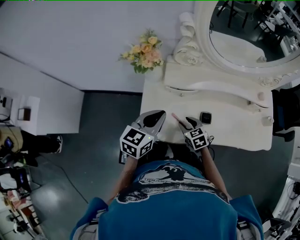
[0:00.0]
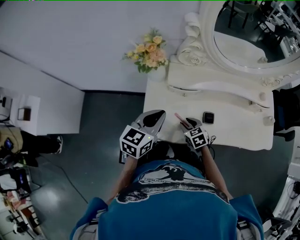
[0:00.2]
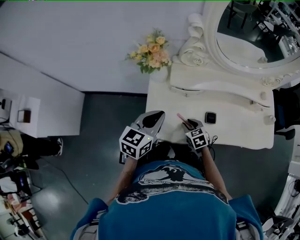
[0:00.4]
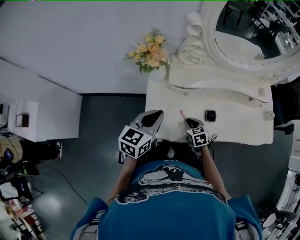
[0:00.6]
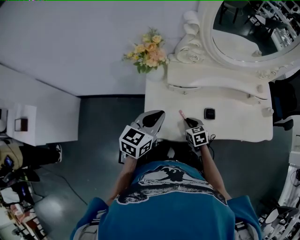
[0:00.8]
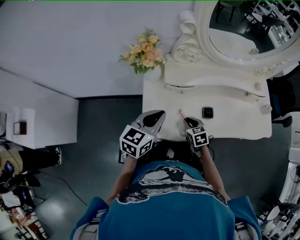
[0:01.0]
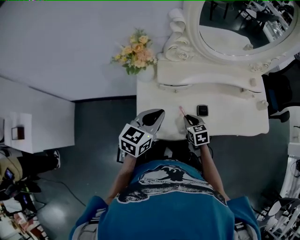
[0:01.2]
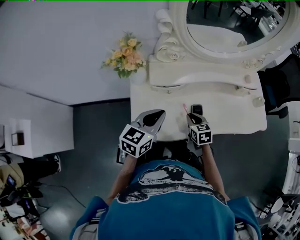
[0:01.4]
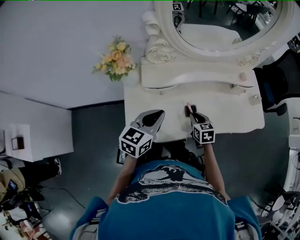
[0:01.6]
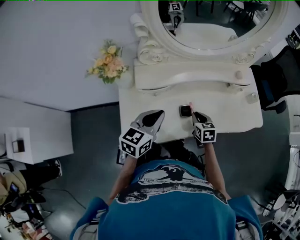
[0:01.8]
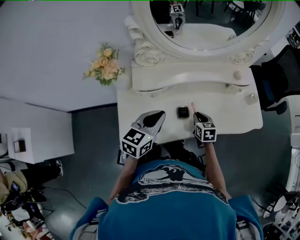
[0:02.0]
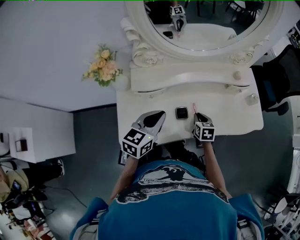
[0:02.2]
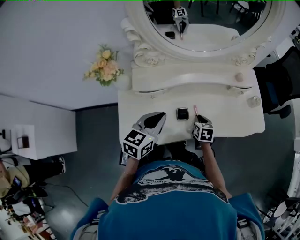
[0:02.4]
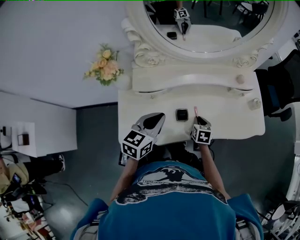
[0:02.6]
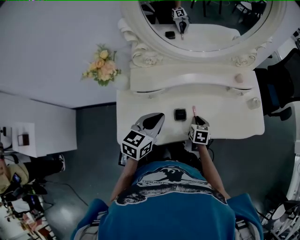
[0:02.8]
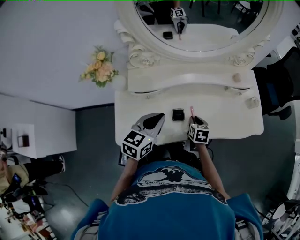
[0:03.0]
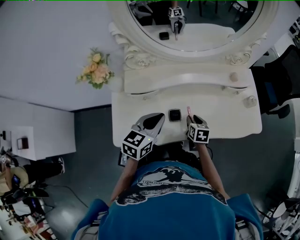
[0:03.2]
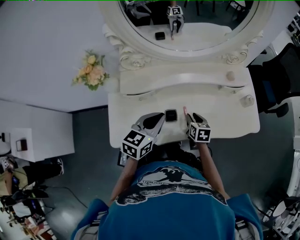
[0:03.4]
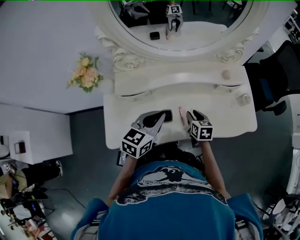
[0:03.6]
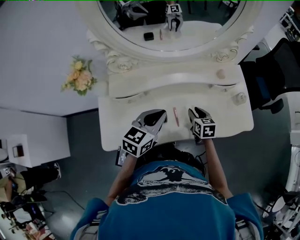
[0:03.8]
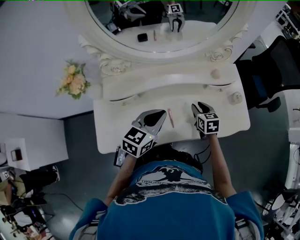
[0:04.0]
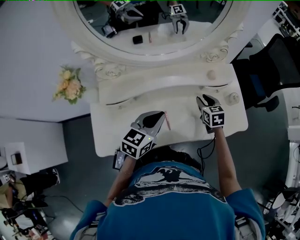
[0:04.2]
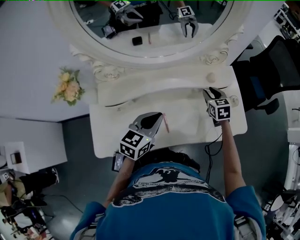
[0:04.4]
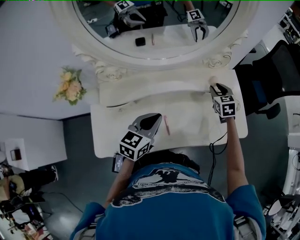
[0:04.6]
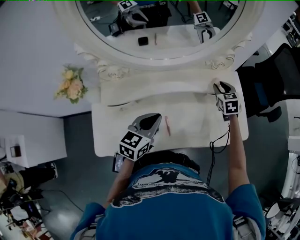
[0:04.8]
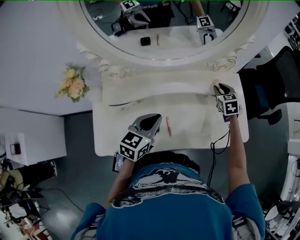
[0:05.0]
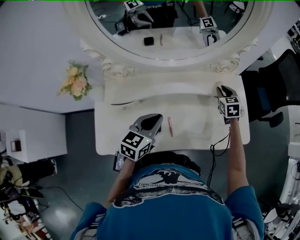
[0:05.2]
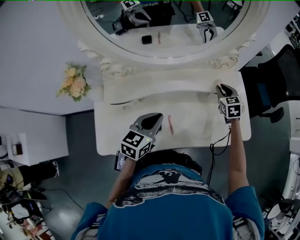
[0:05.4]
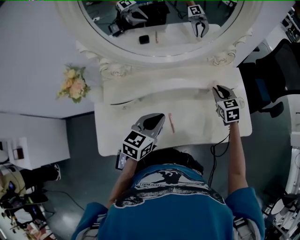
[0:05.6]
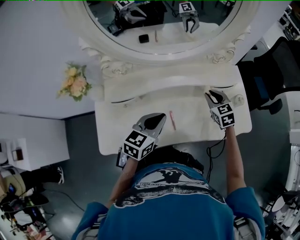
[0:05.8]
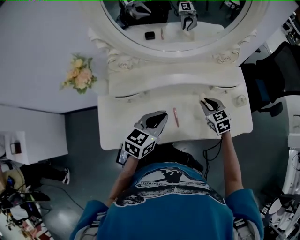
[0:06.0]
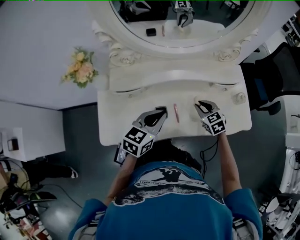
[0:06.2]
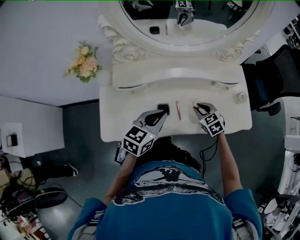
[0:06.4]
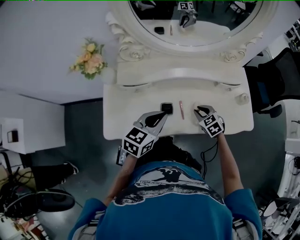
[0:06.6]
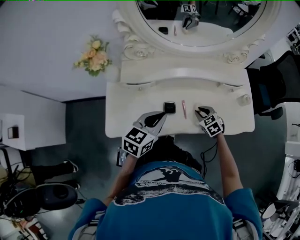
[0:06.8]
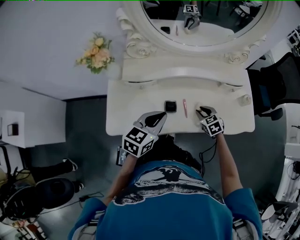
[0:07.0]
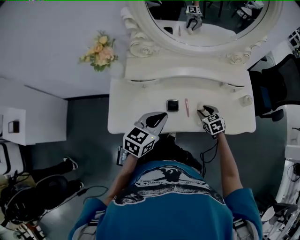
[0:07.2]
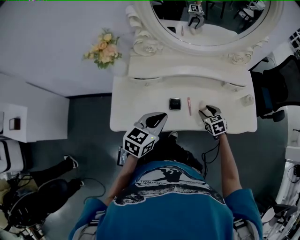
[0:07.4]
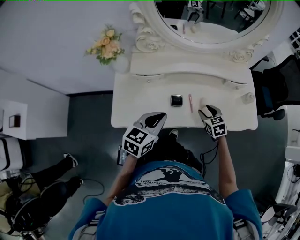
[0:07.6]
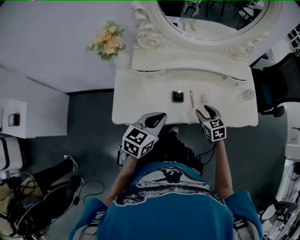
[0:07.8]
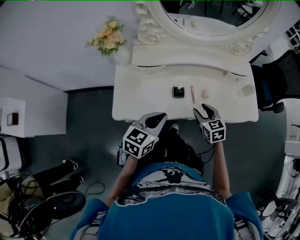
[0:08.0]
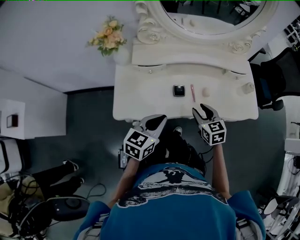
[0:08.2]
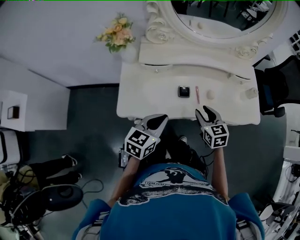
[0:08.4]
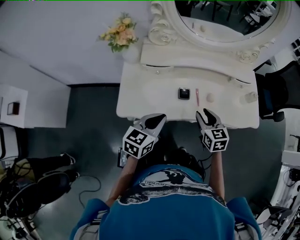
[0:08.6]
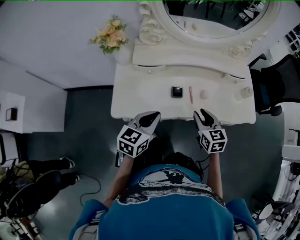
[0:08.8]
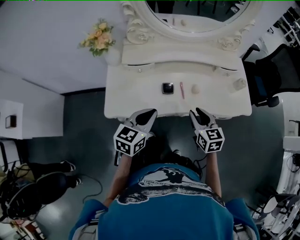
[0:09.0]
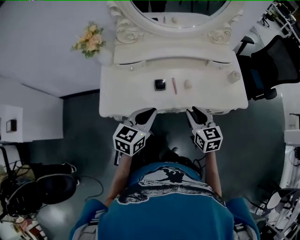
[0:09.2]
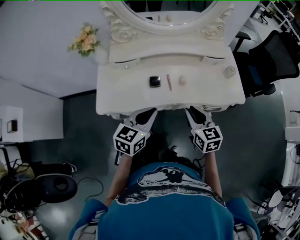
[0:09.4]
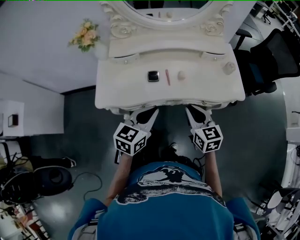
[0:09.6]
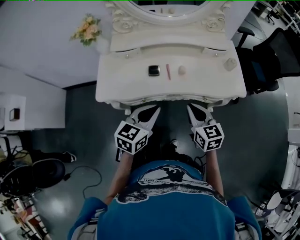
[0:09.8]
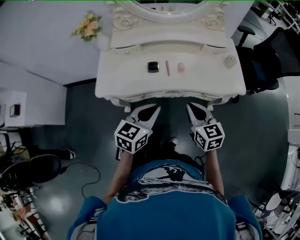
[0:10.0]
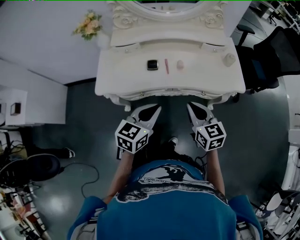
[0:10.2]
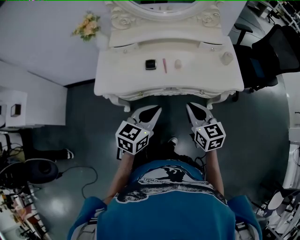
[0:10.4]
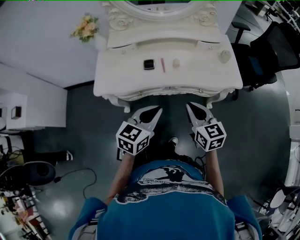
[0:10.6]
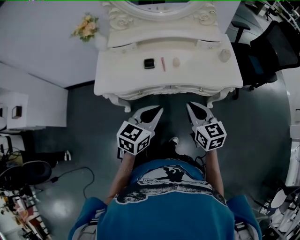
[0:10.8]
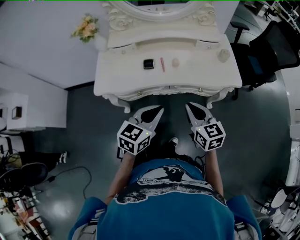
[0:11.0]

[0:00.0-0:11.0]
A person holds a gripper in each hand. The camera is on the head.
0.0 to 1.6 s: The right gripper shifts approximately 15 cm to the right, and changes its angle by approximately 30 degrees. The left gripper travels to the right by some 5 cm.
1.6 to 3.2 s: The two grippers go about 10 cm to the right.
3.2 to 4.8 s: The right gripper travels forward, to the right and upward by some 35 cm, and swivels some 30 degrees, while the left gripper is displaced to the right and forward by approximately 10 cm.
4.8 to 6.2 s: The right gripper heads backward and to the left, covering about 20 cm, and swivels roughly 20 degrees. Meanwhile the left gripper heads backward, covering roughly 5 cm.
6.2 to 7.8 s: Both grippers travel together backward and to the left, approximately 15 cm.
7.8 to 9.4 s: The left gripper shifts roughly 10 cm to the right and backward; the right gripper heads backward and upward, covering approximately 15 cm, and swivels about 20 degrees.
9.4 to 11.0 s: The left gripper travels backward and to the right by some 15 cm, while the right gripper heads backward, covering approximately 10 cm.

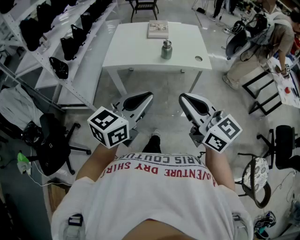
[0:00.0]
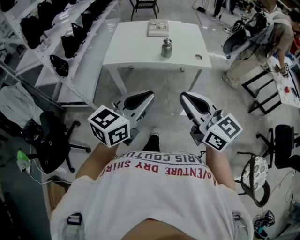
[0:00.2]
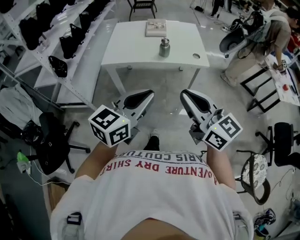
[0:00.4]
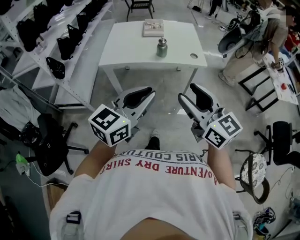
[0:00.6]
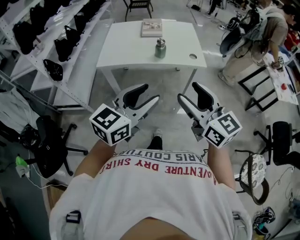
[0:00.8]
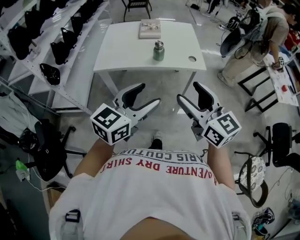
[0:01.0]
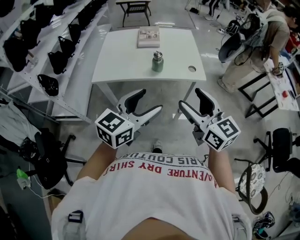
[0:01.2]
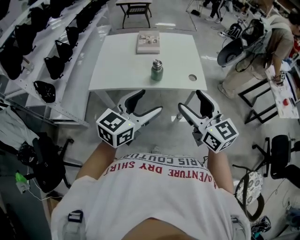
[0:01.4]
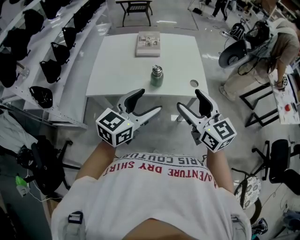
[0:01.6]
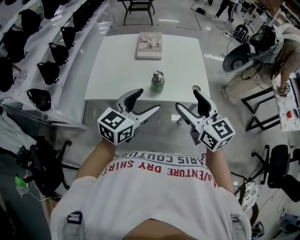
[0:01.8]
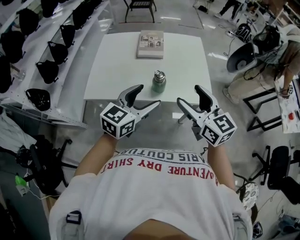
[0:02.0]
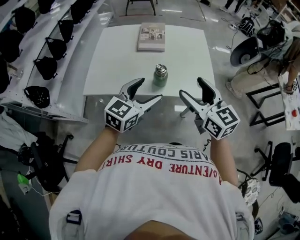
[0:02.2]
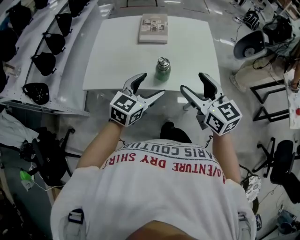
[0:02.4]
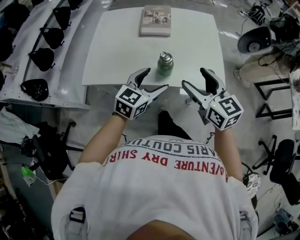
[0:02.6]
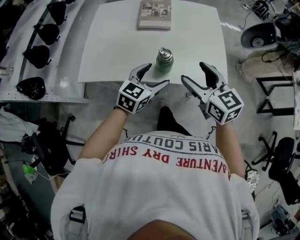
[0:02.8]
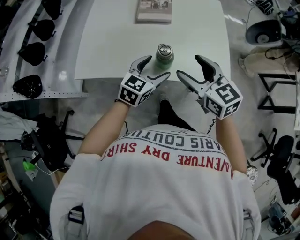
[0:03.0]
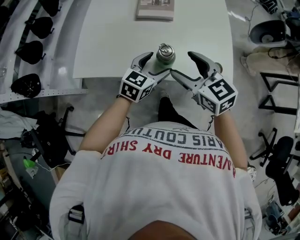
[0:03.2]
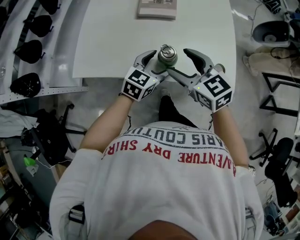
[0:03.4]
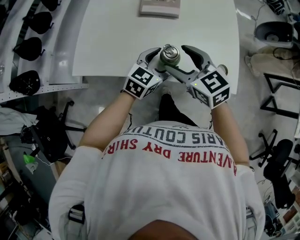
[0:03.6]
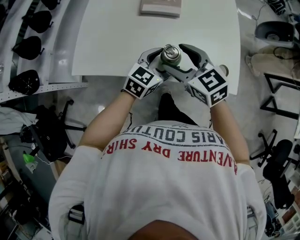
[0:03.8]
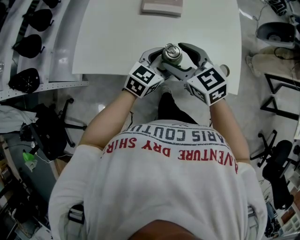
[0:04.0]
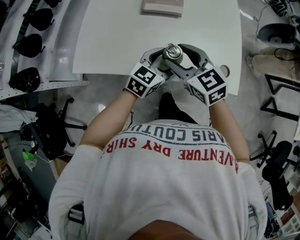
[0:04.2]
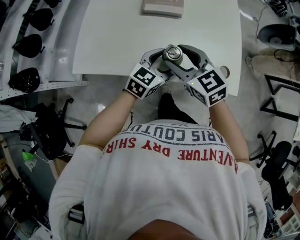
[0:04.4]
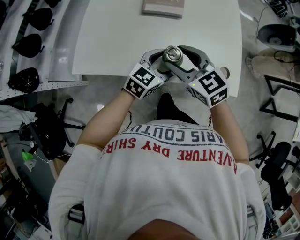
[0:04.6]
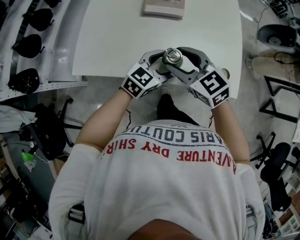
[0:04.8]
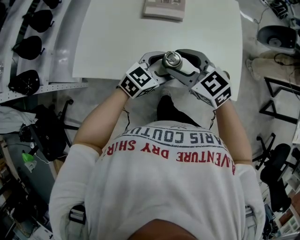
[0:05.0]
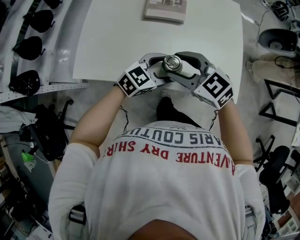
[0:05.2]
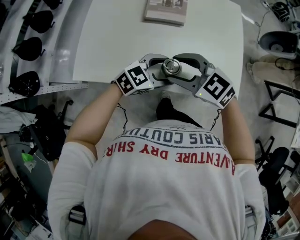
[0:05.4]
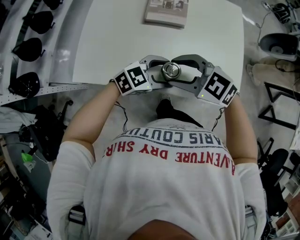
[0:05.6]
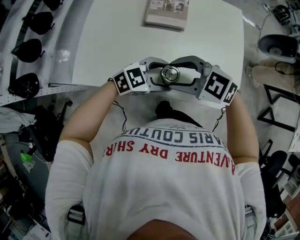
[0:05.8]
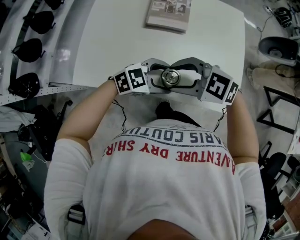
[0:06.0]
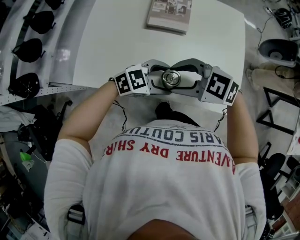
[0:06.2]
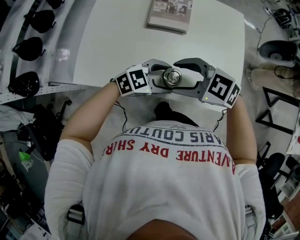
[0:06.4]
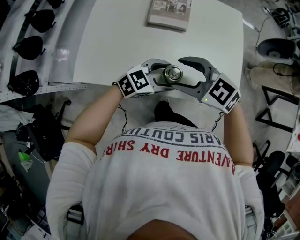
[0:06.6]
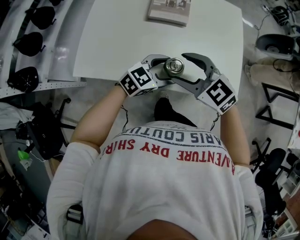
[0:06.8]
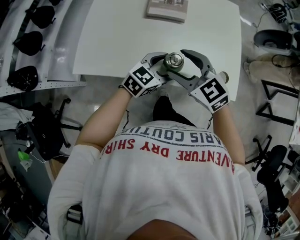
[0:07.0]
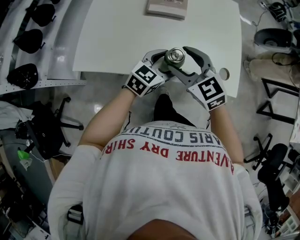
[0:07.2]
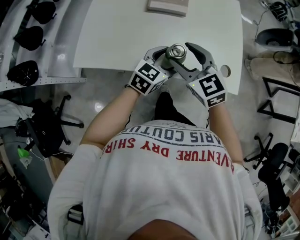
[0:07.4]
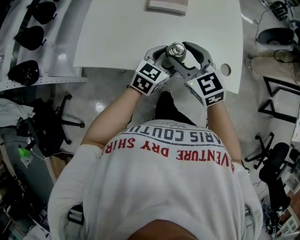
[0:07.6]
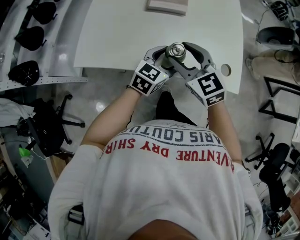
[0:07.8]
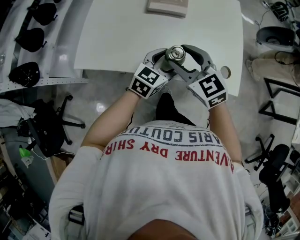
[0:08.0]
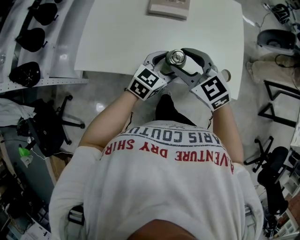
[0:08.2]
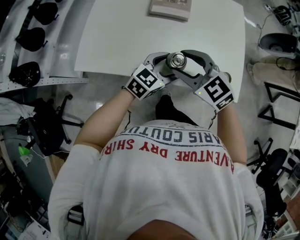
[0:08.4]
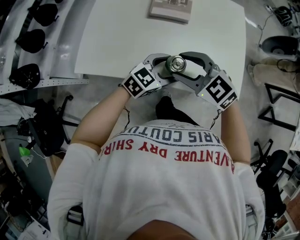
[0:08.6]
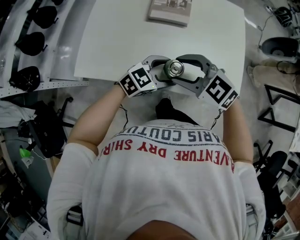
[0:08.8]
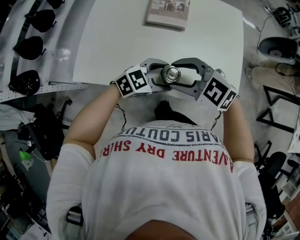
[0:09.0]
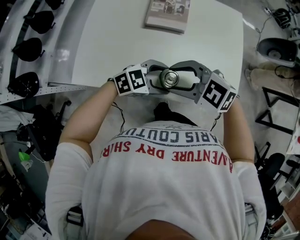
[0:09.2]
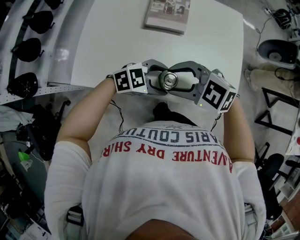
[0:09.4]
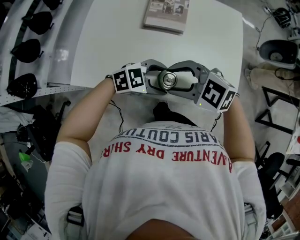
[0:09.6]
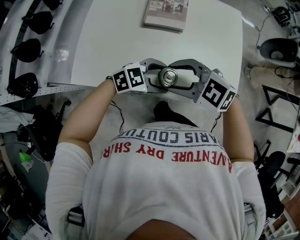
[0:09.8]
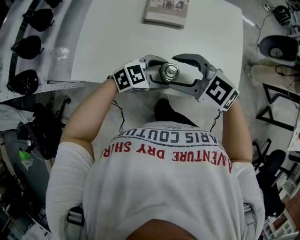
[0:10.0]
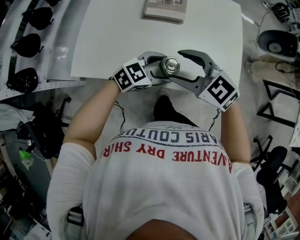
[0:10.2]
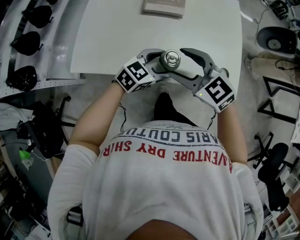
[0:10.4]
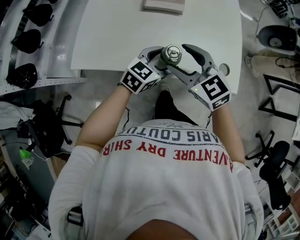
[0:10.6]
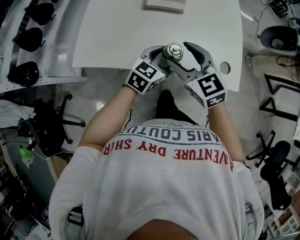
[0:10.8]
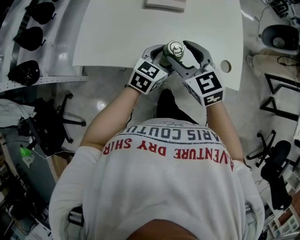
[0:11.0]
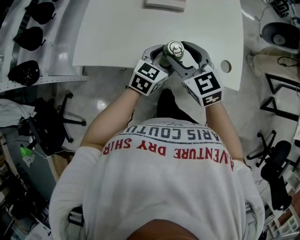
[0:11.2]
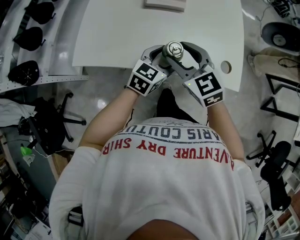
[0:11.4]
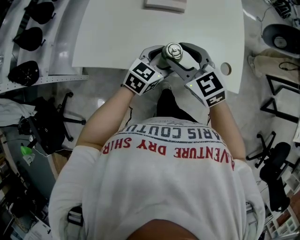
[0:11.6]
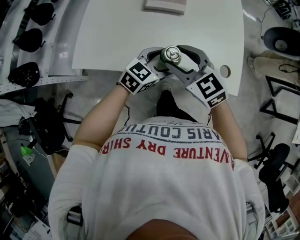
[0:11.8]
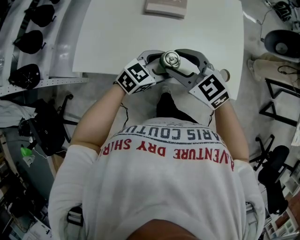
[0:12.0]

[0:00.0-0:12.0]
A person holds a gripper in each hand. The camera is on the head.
0.0 to 1.6 s: The two grippers go about 25 cm forward. The right gripper opens, while the left gripper opens its fingers.
1.6 to 3.0 s: The right gripper moves forward and downward, roughly 20 cm; the left gripper moves downward and forward, about 30 cm.
3.0 to 4.4 s: The right gripper goes roughly 10 cm to the left and forward, while the left gripper moves approximately 5 cm.
4.4 to 6.0 s: The left gripper changes its angle by about 40 degrees, while the right gripper changes its angle by some 40 degrees.
6.0 to 7.6 s: The right gripper changes its angle by approximately 50 degrees, while the left gripper changes its angle by about 40 degrees.
7.6 to 9.0 s: The left gripper changes its angle by some 30 degrees. The right gripper swivels roughly 40 degrees.
9.0 to 10.4 s: The right gripper swivels approximately 20 degrees.

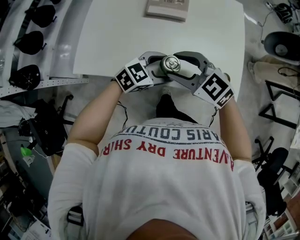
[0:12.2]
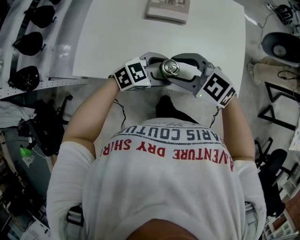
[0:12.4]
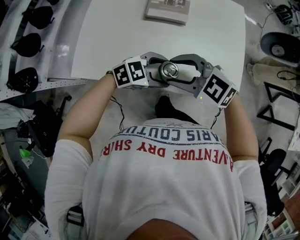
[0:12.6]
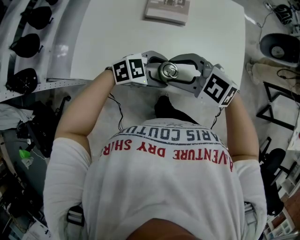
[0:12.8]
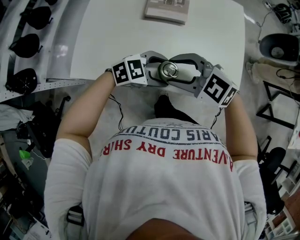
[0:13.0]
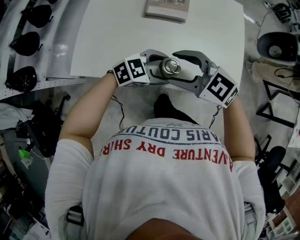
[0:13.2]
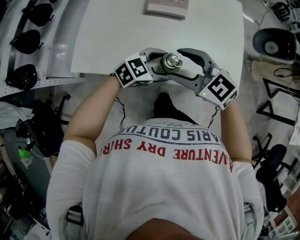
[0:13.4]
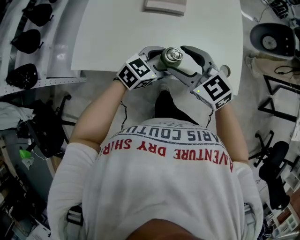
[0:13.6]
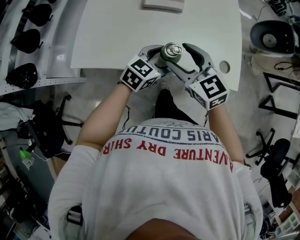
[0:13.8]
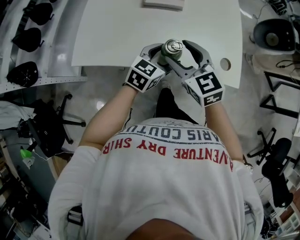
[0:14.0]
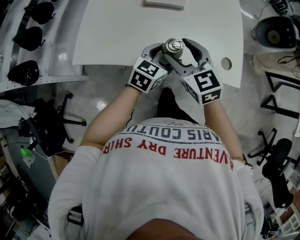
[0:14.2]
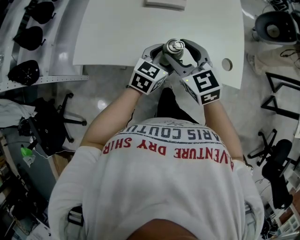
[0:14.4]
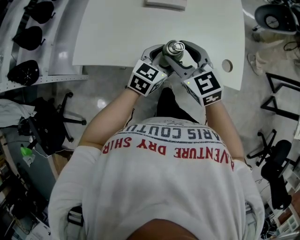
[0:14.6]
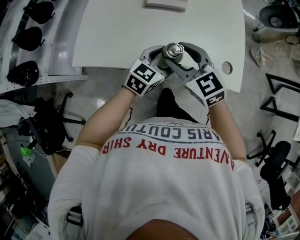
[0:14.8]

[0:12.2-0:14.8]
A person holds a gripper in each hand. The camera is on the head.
12.2 to 13.4 s: The grippers move only a little.
13.4 to 14.8 s: The left gripper swivels roughly 30 degrees.
